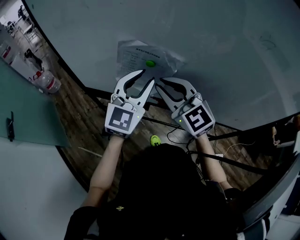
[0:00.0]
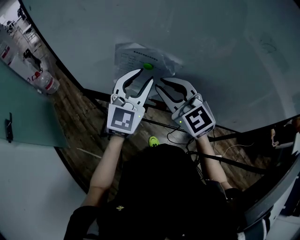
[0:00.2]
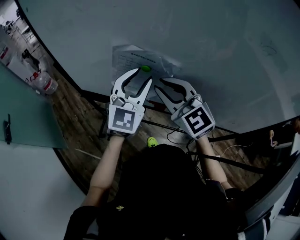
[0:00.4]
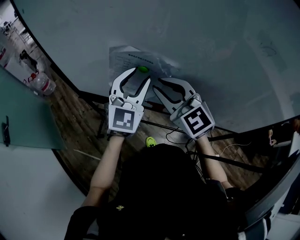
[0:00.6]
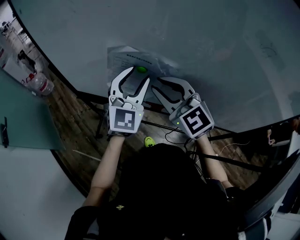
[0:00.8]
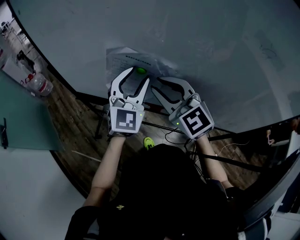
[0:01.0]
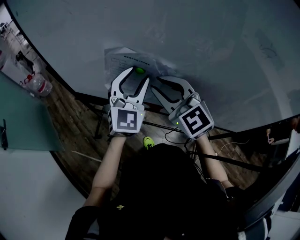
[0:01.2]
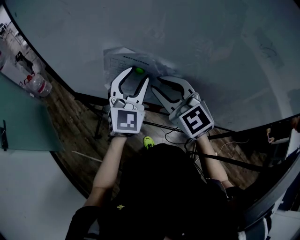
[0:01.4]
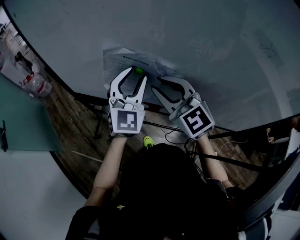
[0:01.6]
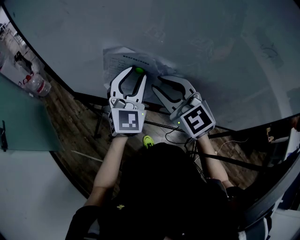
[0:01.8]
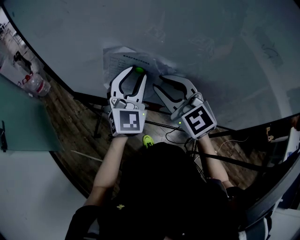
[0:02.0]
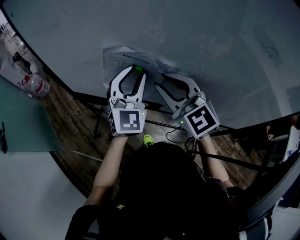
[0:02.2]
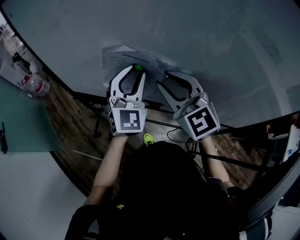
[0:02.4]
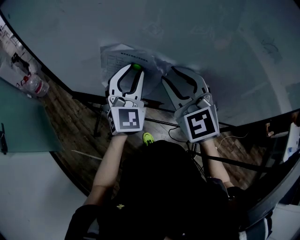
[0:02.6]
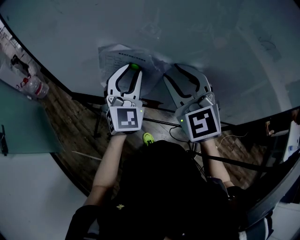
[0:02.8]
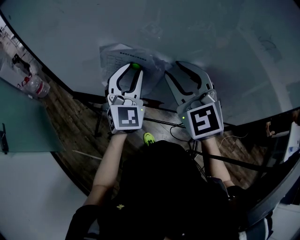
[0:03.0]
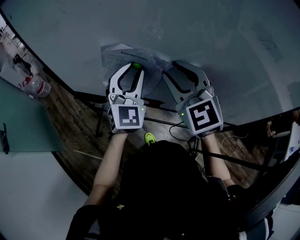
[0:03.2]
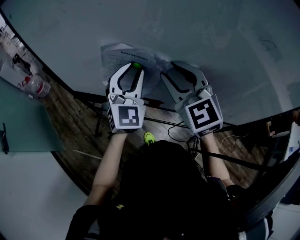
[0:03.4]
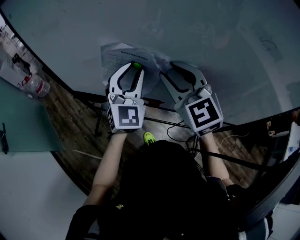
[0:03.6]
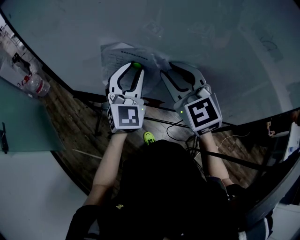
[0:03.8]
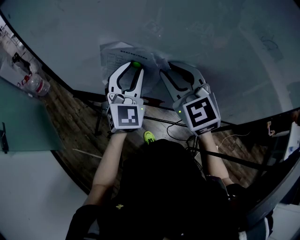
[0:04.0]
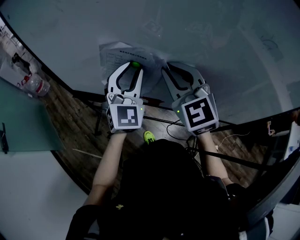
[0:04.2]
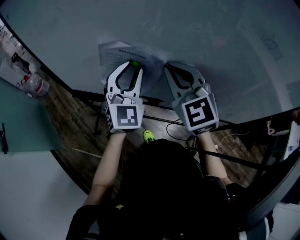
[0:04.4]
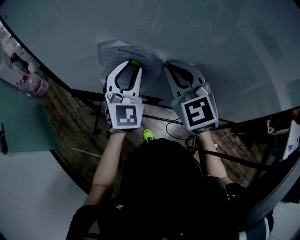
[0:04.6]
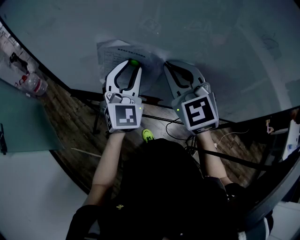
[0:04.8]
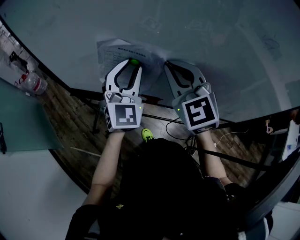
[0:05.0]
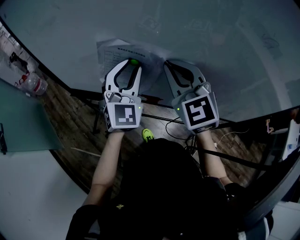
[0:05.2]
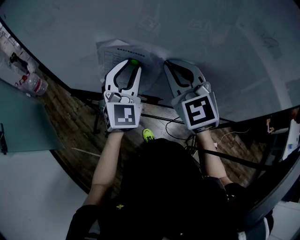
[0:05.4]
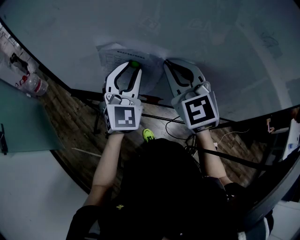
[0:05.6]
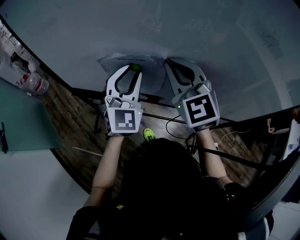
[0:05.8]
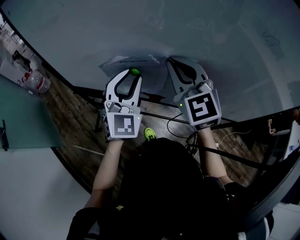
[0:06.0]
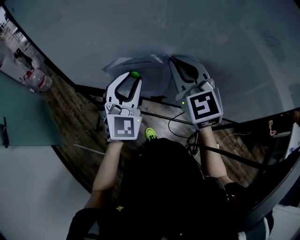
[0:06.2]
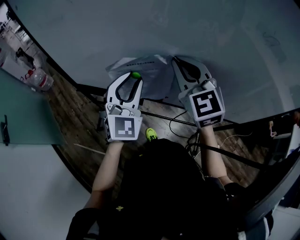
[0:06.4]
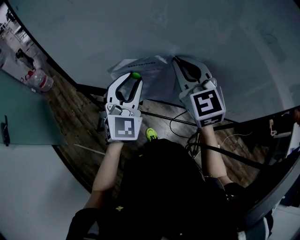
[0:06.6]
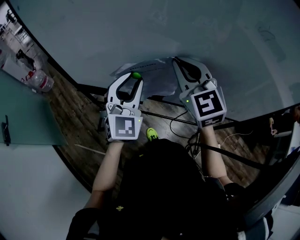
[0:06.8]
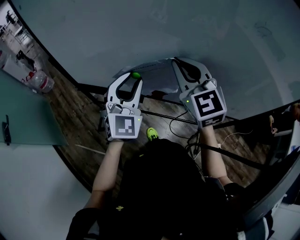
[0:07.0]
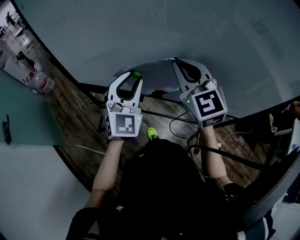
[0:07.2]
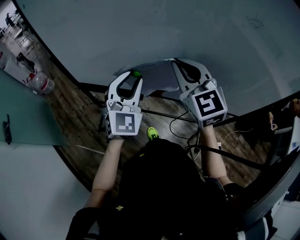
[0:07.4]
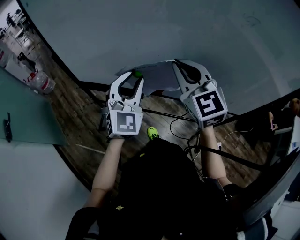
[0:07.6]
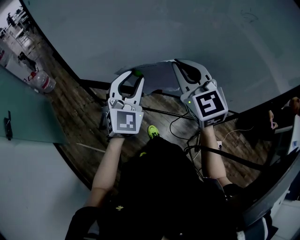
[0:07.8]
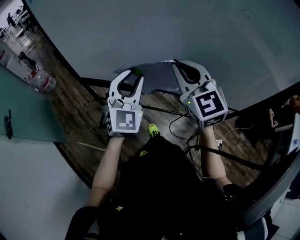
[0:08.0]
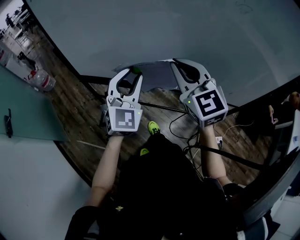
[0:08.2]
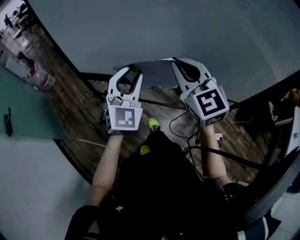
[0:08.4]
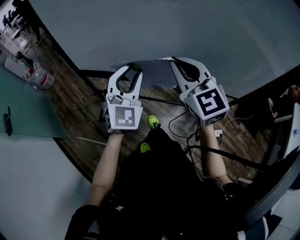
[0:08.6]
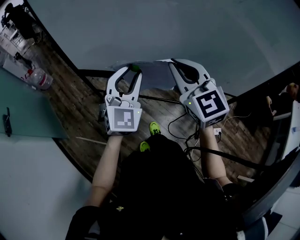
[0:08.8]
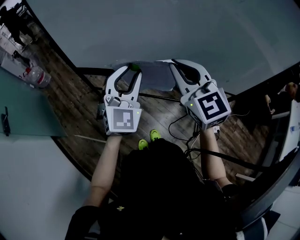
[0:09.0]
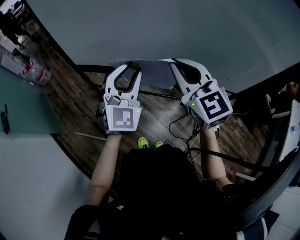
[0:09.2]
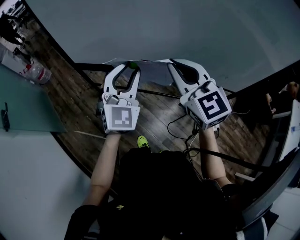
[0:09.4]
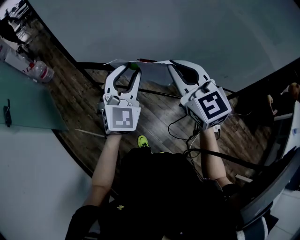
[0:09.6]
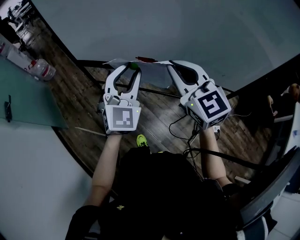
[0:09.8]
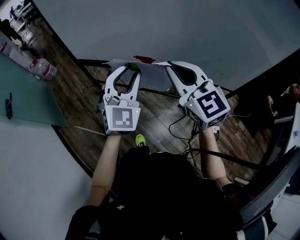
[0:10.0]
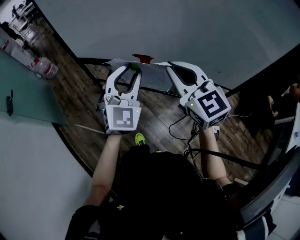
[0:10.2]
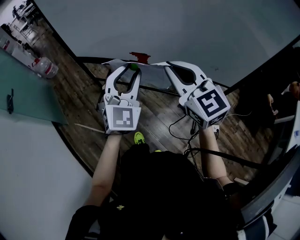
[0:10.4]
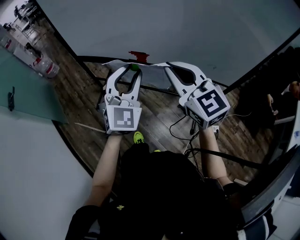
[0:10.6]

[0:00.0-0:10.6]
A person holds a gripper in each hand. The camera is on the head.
0:00.0 to 0:01.6: The left gripper changes place by some 5 cm.
0:01.6 to 0:03.0: The right gripper ends up approximately 5 cm from where it was.
0:03.0 to 0:04.6: The right gripper closes its fingers.
0:04.6 to 0:06.0: There are only small adjustments of the grippers.
0:06.0 to 0:07.6: Both grippers travel together backward, approximately 5 cm.
0:07.6 to 0:09.0: Both grippers travel together backward, roughly 10 cm.
0:09.0 to 0:10.6: The grippers both shift backward and to the right by approximately 15 cm.

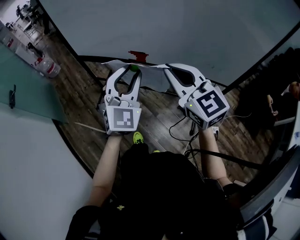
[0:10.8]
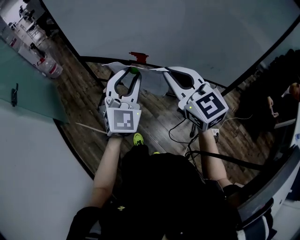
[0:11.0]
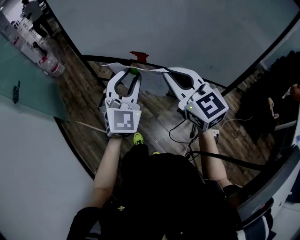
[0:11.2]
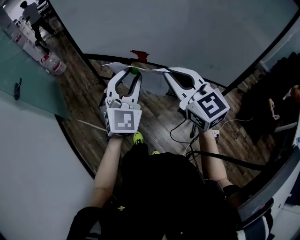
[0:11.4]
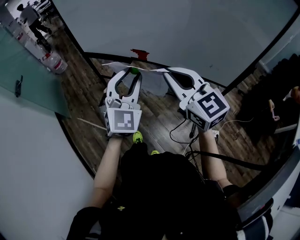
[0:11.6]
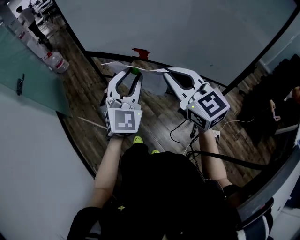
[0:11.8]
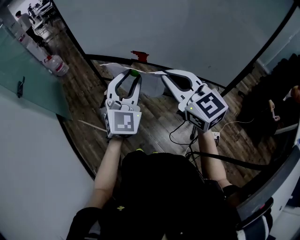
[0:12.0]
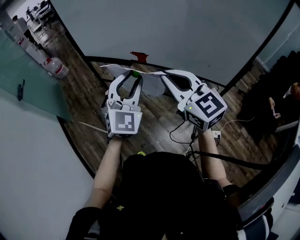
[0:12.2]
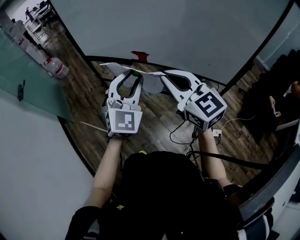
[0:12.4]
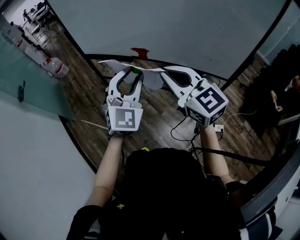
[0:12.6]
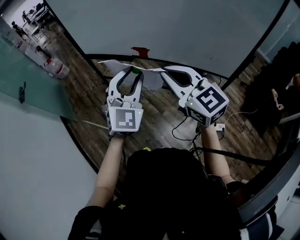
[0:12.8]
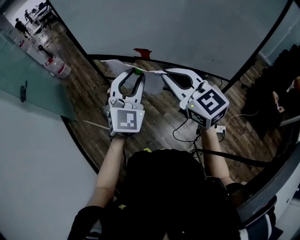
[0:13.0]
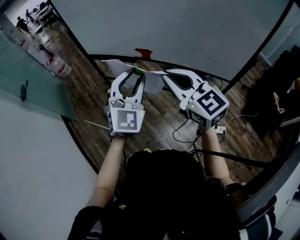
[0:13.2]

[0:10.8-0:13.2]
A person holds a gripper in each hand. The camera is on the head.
0:10.8 to 0:12.0: The two grippers go some 5 cm backward.
0:12.0 to 0:13.2: Neither gripper changes place.

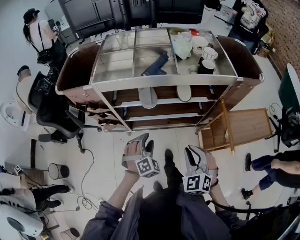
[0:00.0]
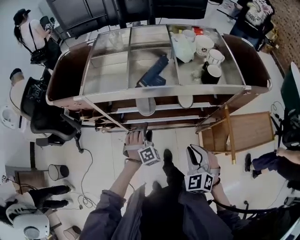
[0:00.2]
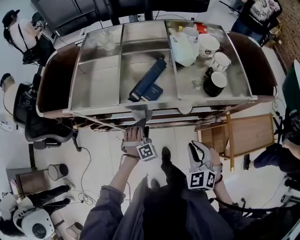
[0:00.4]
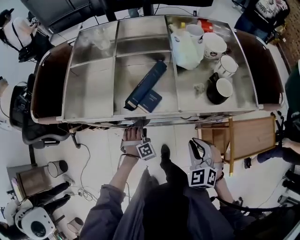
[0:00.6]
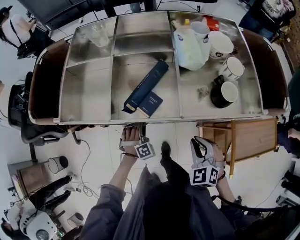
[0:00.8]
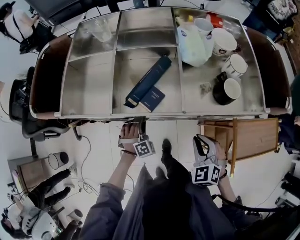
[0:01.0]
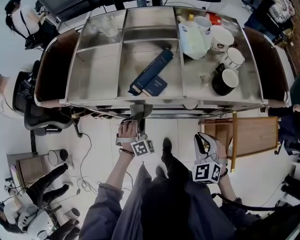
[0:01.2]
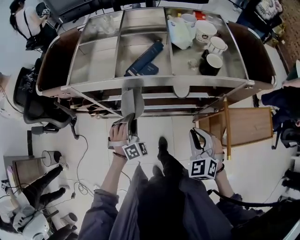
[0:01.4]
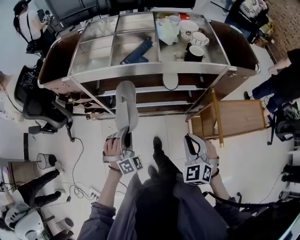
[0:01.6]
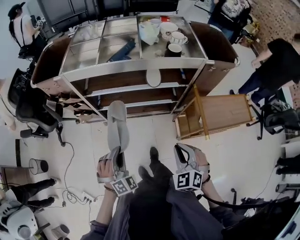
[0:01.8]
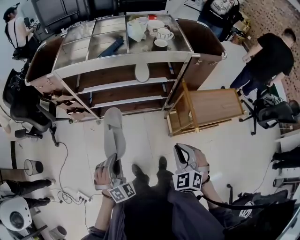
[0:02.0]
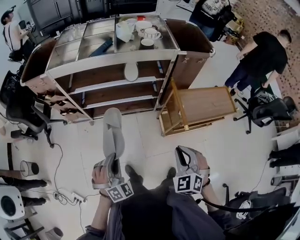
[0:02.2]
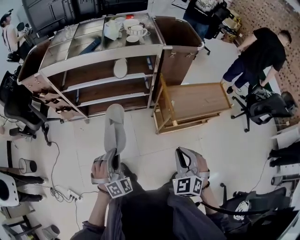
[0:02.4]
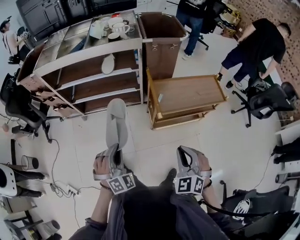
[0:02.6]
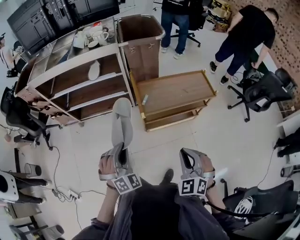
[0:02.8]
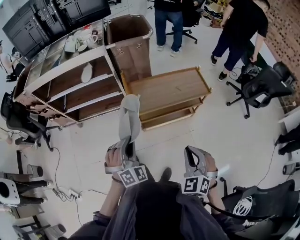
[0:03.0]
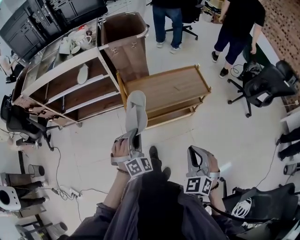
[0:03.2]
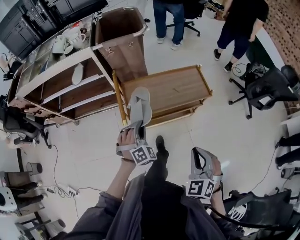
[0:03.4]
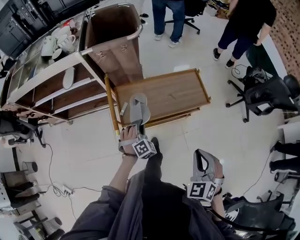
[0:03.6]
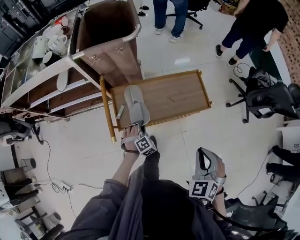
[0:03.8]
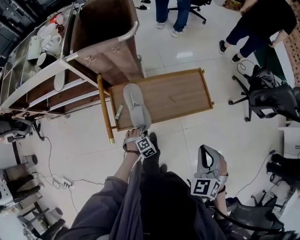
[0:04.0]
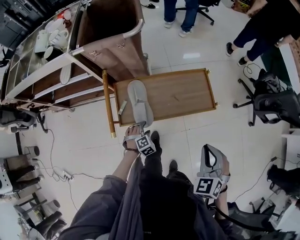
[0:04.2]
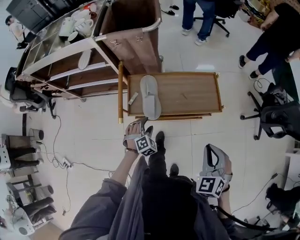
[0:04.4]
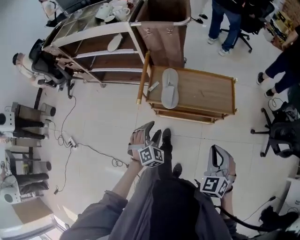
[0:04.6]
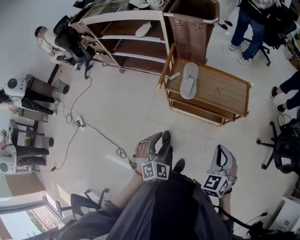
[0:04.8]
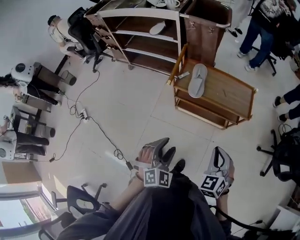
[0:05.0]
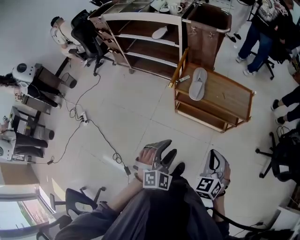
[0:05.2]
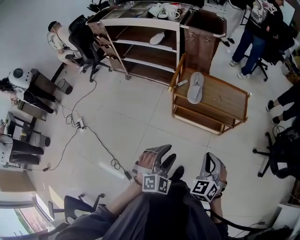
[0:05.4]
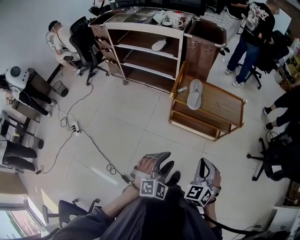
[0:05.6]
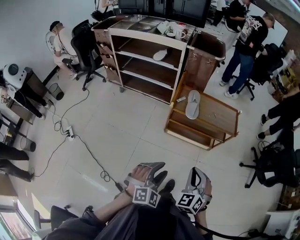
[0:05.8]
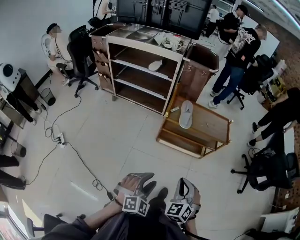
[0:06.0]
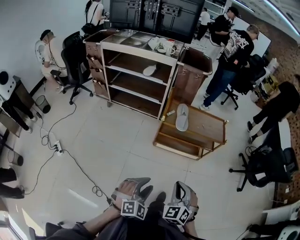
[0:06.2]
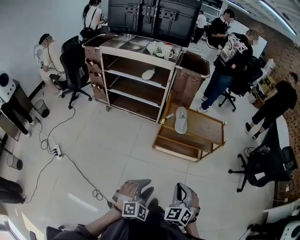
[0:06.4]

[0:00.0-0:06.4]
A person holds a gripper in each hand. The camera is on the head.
0:00.0 to 0:01.6: The left gripper moves roughly 25 cm forward and comes back, and closes its fingers. Meanwhile the right gripper moves to the right, roughly 10 cm, and moves some 25 cm forward and comes back.
0:01.6 to 0:03.2: The two grippers travel together, to the right and backward, about 60 cm.
0:03.2 to 0:04.8: The left gripper heads to the right and backward, covering approximately 15 cm, turns by approximately 30 degrees, and opens, while the right gripper goes roughly 15 cm to the right, and travels forward and back again, some 20 cm each way.
0:04.8 to 0:06.4: Both grippers travel together backward and to the left, roughly 30 cm.

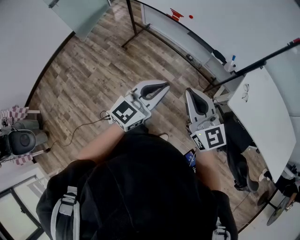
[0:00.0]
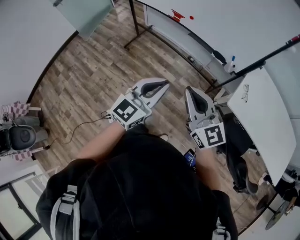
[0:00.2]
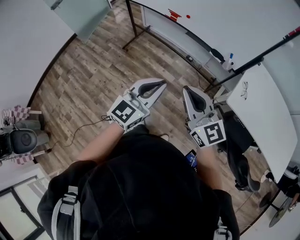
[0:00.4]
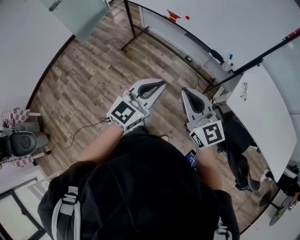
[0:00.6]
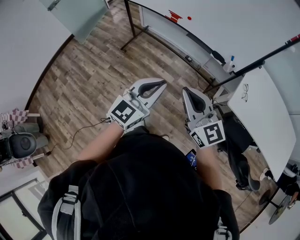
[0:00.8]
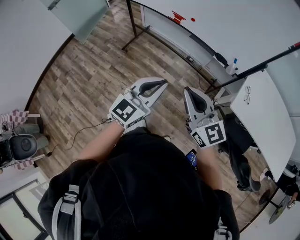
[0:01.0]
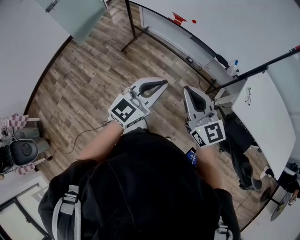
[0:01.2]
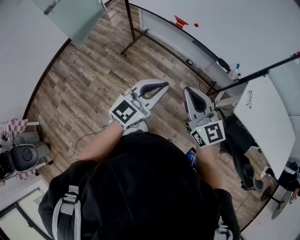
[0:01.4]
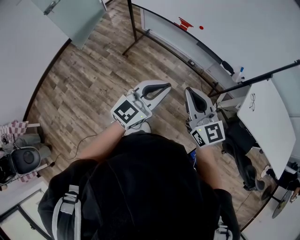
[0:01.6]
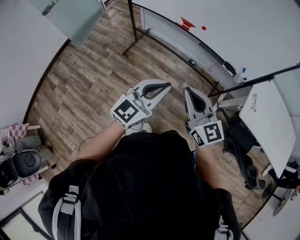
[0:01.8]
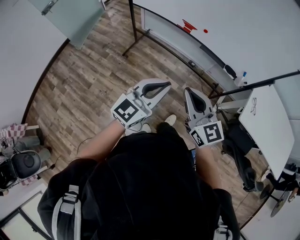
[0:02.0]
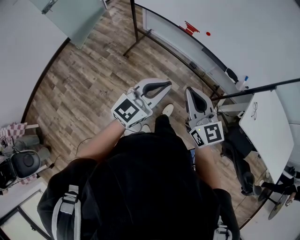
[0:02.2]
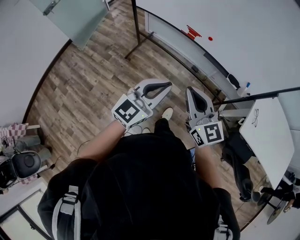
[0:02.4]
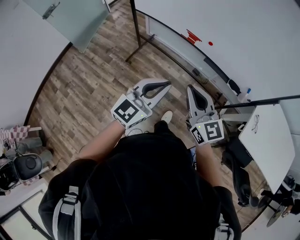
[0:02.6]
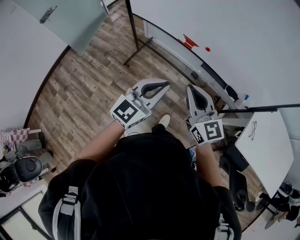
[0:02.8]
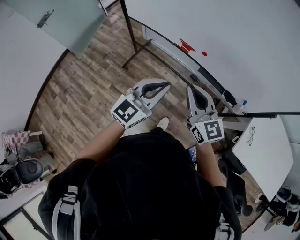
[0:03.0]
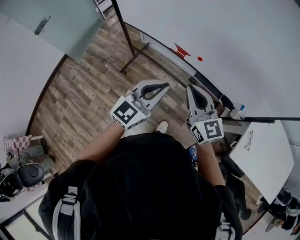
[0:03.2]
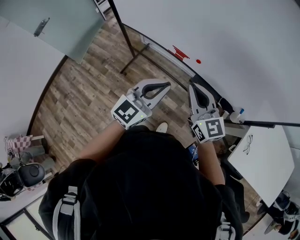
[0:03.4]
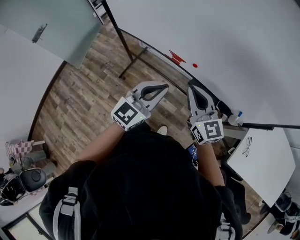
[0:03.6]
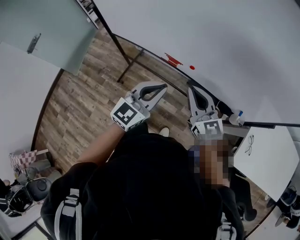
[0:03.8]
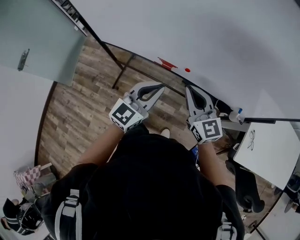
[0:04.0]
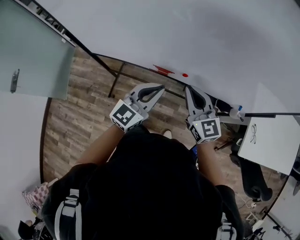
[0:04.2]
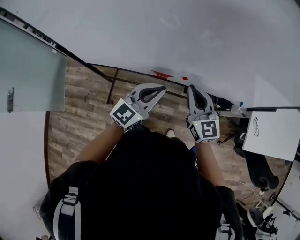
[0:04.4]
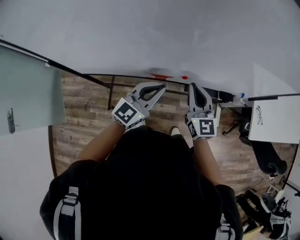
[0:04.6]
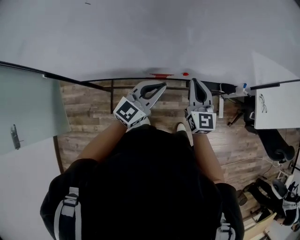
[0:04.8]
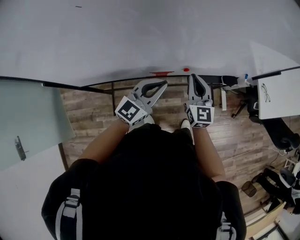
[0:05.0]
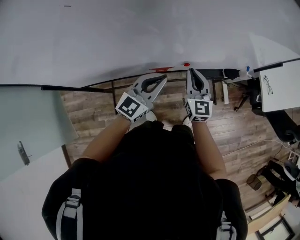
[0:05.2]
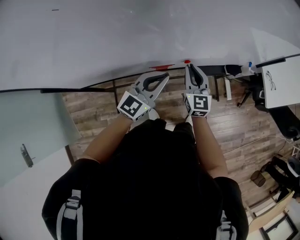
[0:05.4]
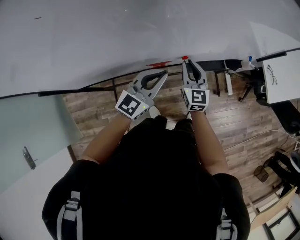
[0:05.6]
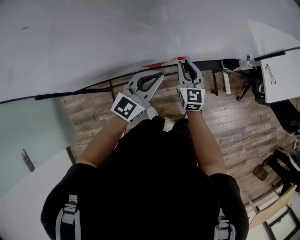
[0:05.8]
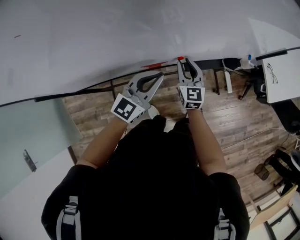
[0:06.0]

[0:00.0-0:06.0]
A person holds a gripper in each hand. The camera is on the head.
0:00.0 to 0:01.6: The two grippers go roughly 15 cm to the left and forward.
0:01.6 to 0:03.0: The grippers both shift forward by some 25 cm.
0:03.0 to 0:04.4: The left gripper changes place by about 25 cm, and rotates roughly 30 degrees, while the right gripper moves approximately 25 cm, and turns by about 30 degrees.
0:04.4 to 0:06.0: The left gripper travels downward by some 10 cm; the right gripper moves downward and forward, some 20 cm, changes its angle by approximately 30 degrees, and opens.
